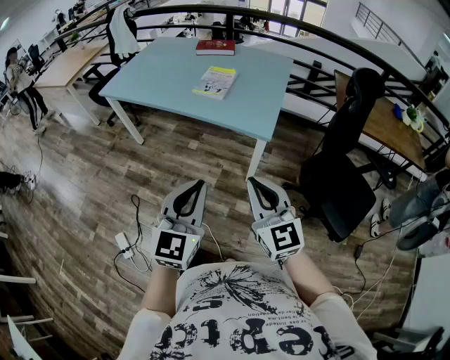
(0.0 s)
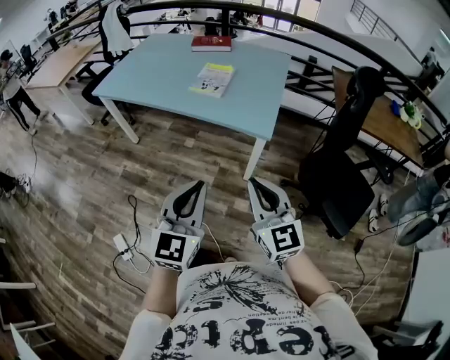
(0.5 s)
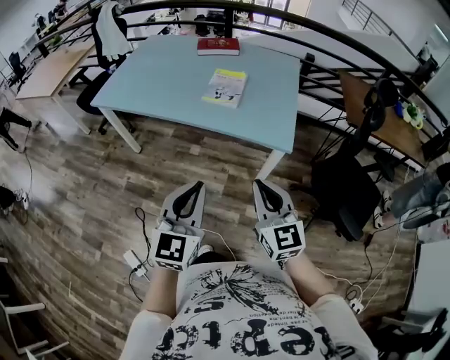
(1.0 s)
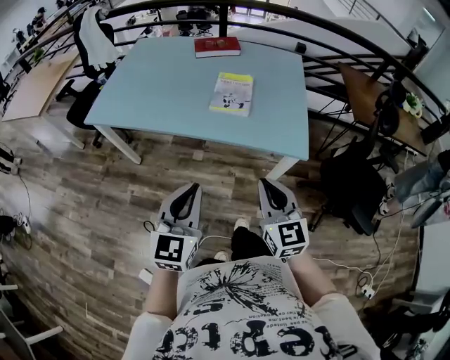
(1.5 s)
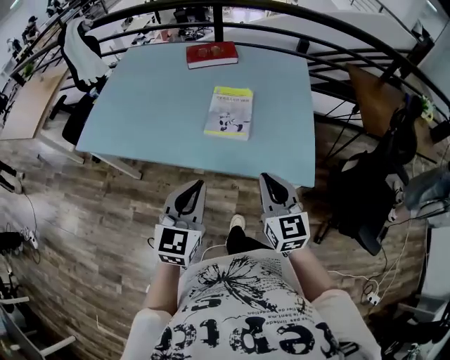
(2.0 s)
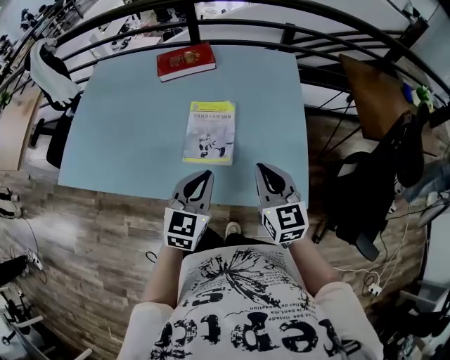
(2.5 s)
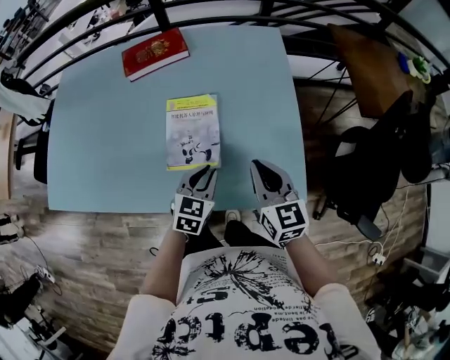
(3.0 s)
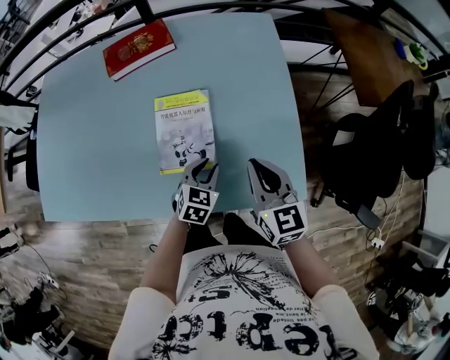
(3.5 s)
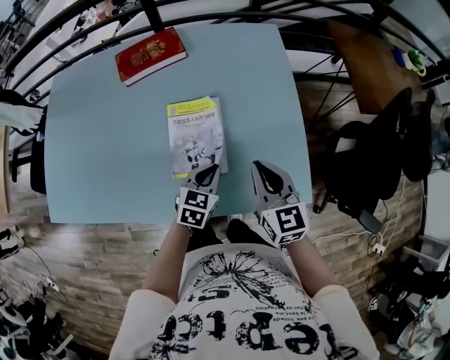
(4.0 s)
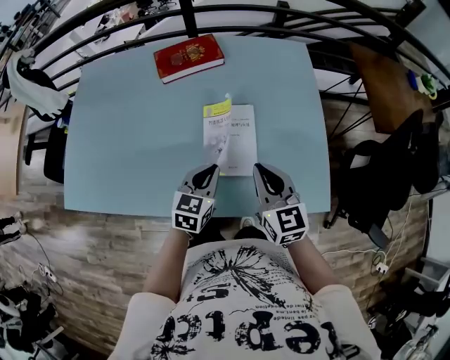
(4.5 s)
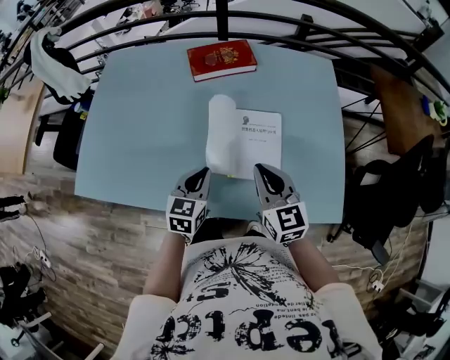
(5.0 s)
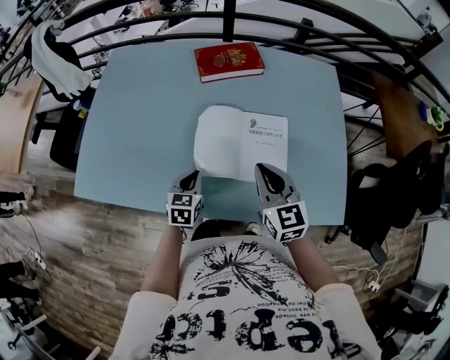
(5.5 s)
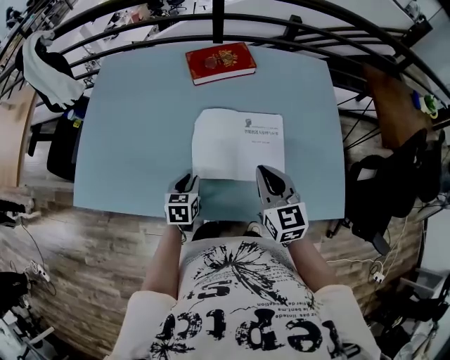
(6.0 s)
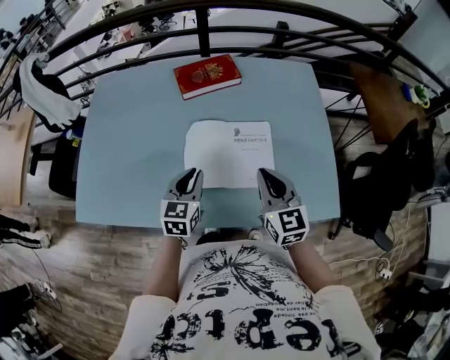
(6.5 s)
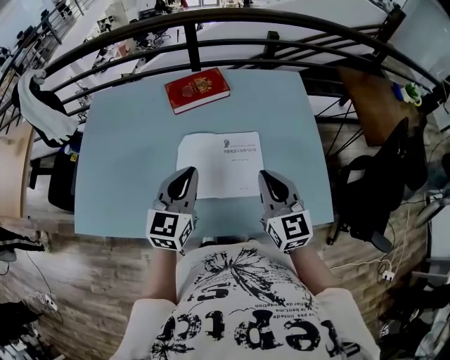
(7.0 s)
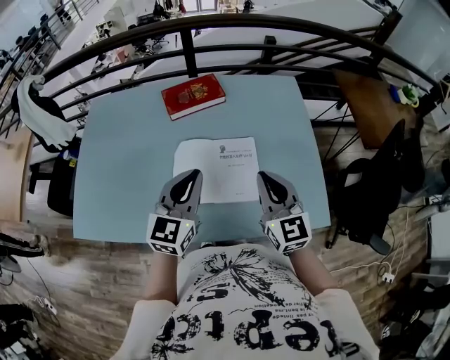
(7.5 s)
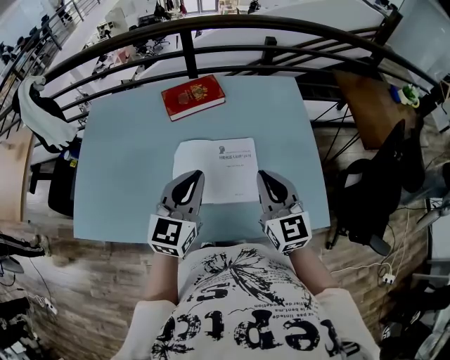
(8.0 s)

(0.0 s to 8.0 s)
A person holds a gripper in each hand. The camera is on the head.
0.0 s - 2.0 s: The two grippers go about 40 cm forward and to the left. The right gripper turns by some 20 degrees.
2.0 s - 4.0 s: The right gripper is displaced forward by approximately 25 cm, while the left gripper shifts some 35 cm forward and downward, changes its angle by some 30 degrees, and opens and closes again.
4.0 s - 6.0 s: Both grippers move to the left, some 25 cm. The left gripper rotates roughly 30 degrees.
6.0 s - 8.0 s: The right gripper moves upward and to the right, some 15 cm; the left gripper shifts some 30 cm upward and to the right, and tilts its fingers about 40 degrees upward.

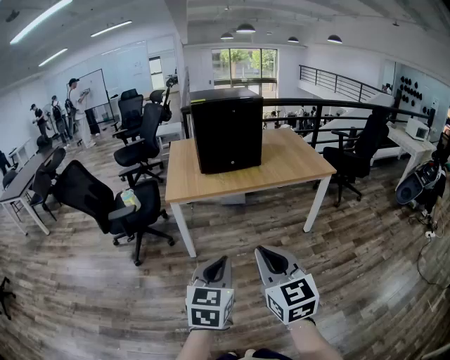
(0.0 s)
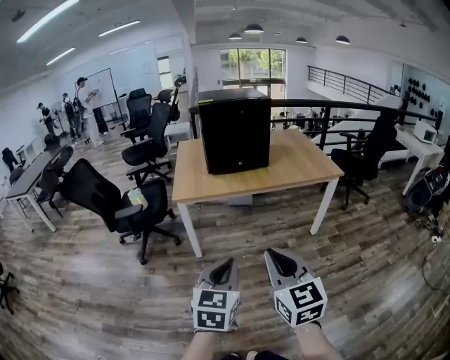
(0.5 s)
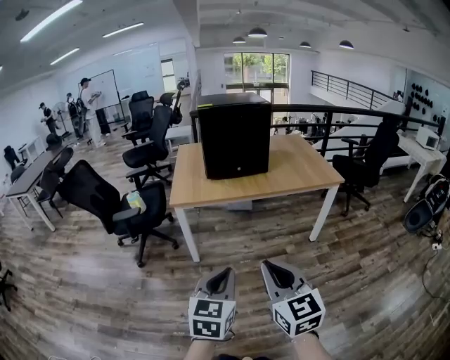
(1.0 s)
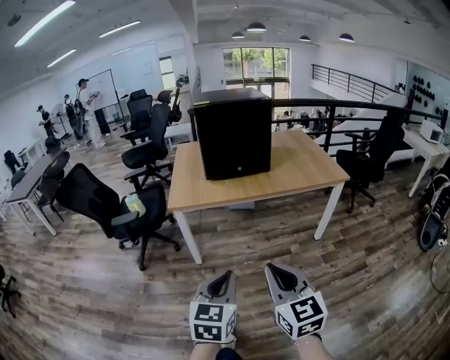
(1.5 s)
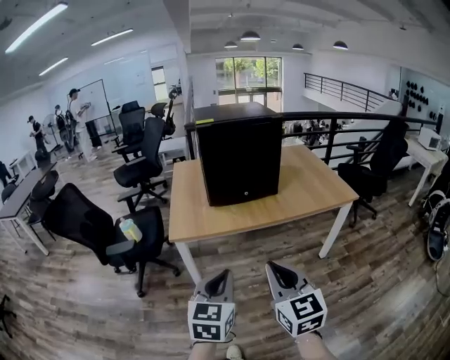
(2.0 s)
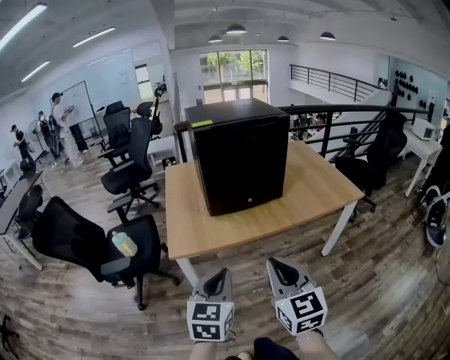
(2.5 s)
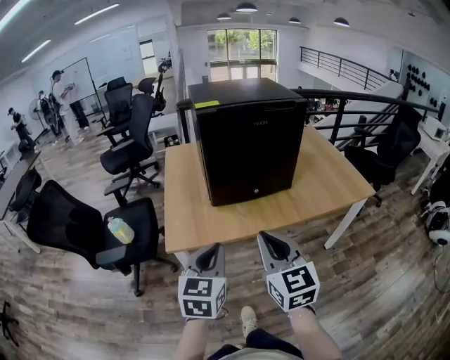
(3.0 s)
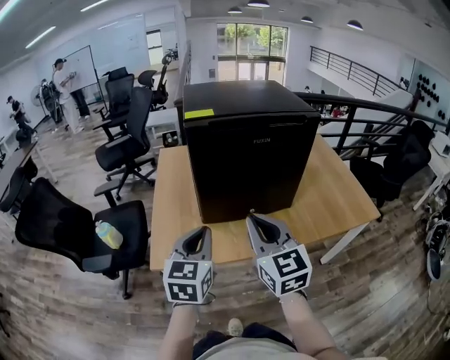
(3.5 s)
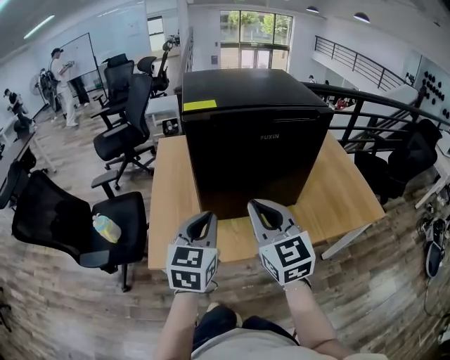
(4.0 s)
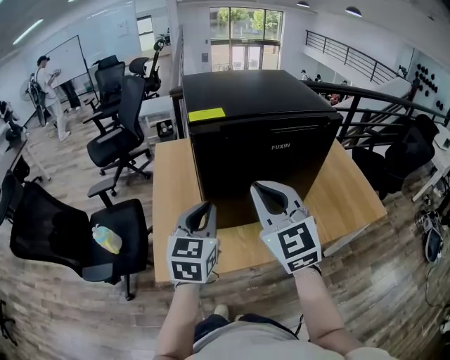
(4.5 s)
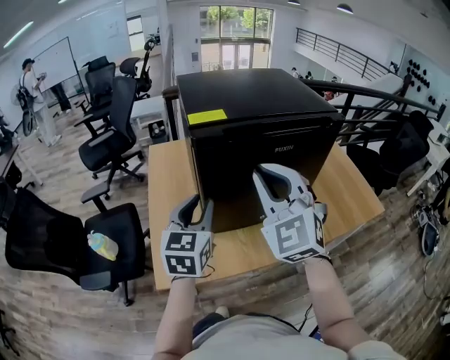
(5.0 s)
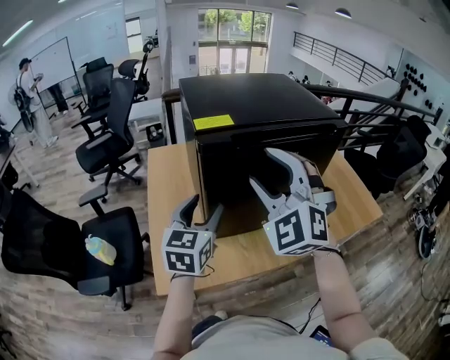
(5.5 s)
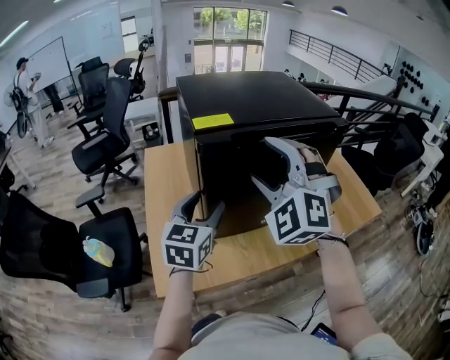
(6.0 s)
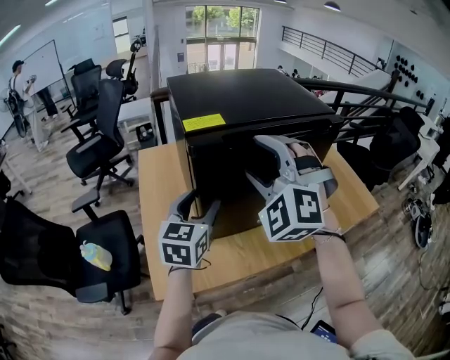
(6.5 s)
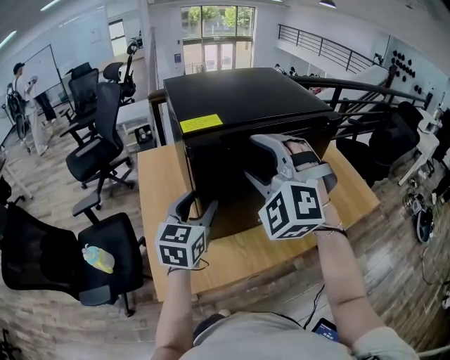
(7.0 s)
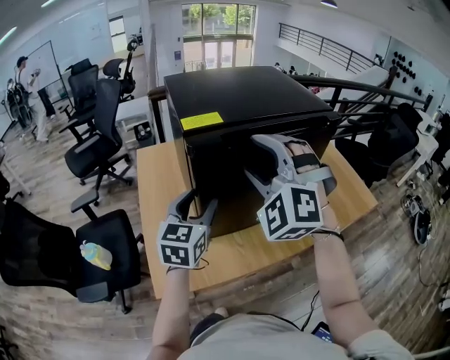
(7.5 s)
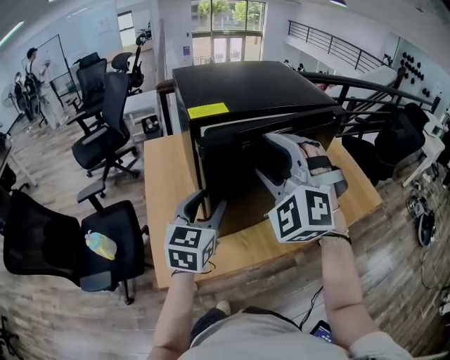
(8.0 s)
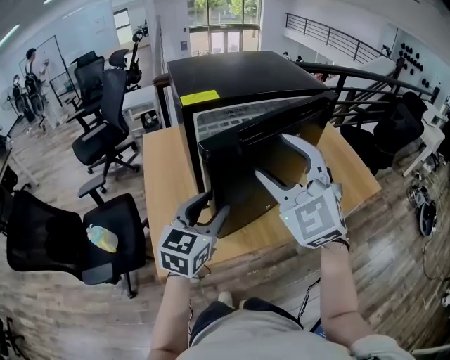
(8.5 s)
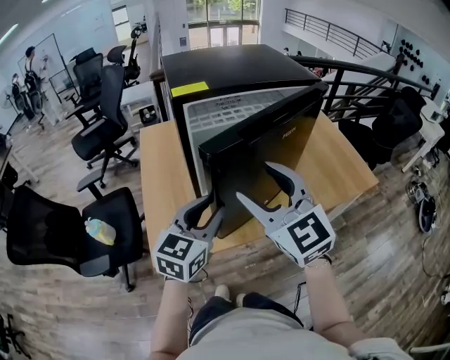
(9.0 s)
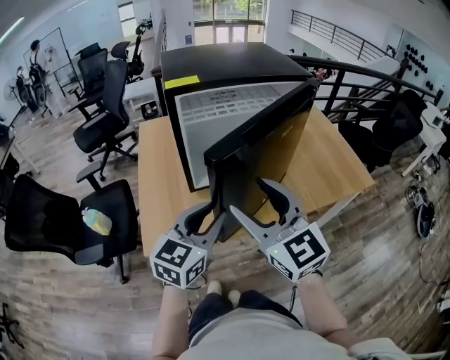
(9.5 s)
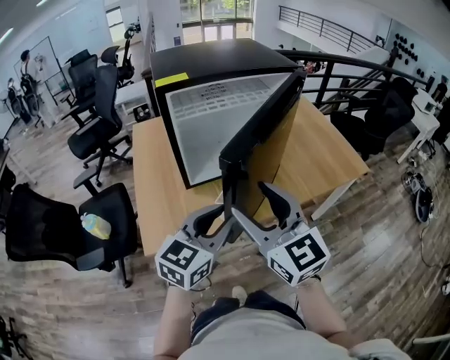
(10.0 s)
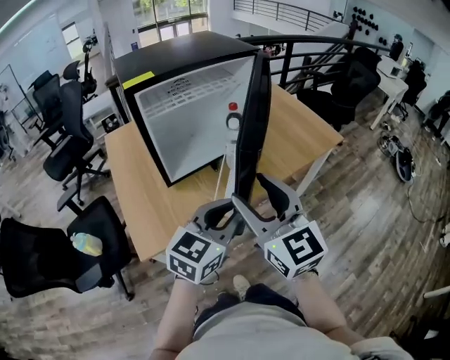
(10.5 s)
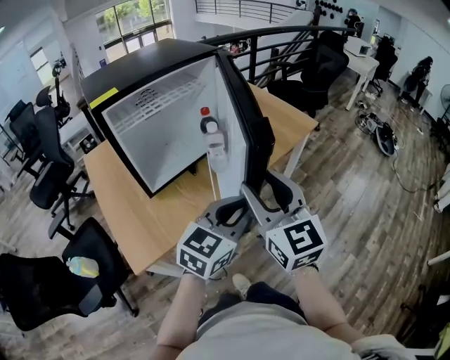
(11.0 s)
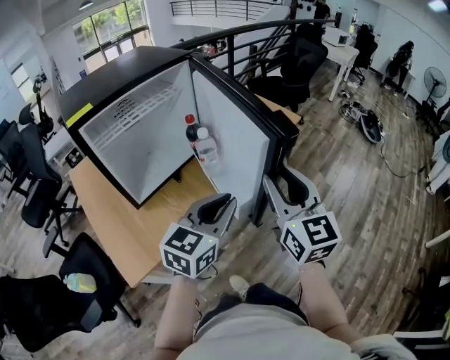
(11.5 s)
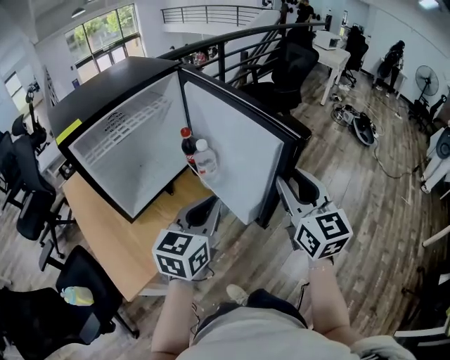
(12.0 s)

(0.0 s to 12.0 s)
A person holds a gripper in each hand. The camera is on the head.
0.0 s - 2.0 s: The two grippers go about 25 cm forward.
2.0 s - 4.0 s: The two grippers travel together, forward, approximately 50 cm.
4.0 s - 6.0 s: The right gripper shifts some 15 cm forward and upward, rolls counterclockwise, seen from behind, by roughly 60 degrees, and opens. Meanwhile the left gripper is displaced forward by approximately 15 cm, and opens up.
6.0 s - 8.0 s: The grippers make only small movements.
8.0 s - 10.0 s: The left gripper heads backward and to the right, covering some 20 cm, swivels roughly 20 degrees, and closes its fingers. The right gripper moves backward, about 20 cm, and rolls clockwise, seen from behind, by about 60 degrees.
10.0 s - 12.0 s: The right gripper shifts by some 25 cm, changes its angle by roughly 50 degrees, and closes up, while the left gripper ends up about 15 cm from where it was.

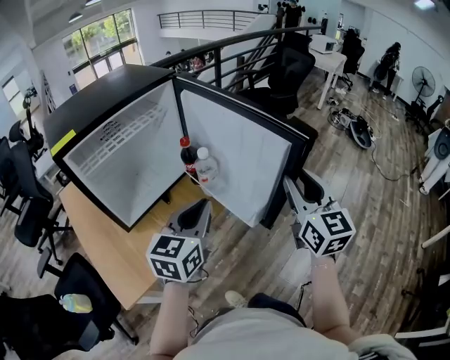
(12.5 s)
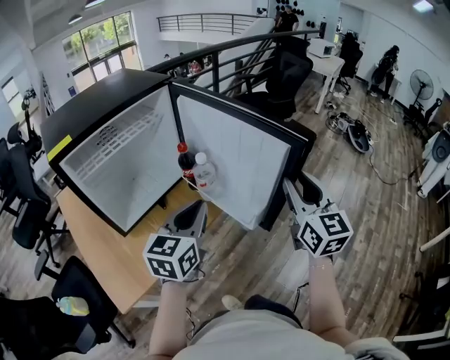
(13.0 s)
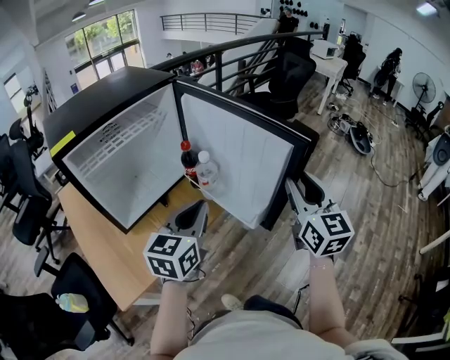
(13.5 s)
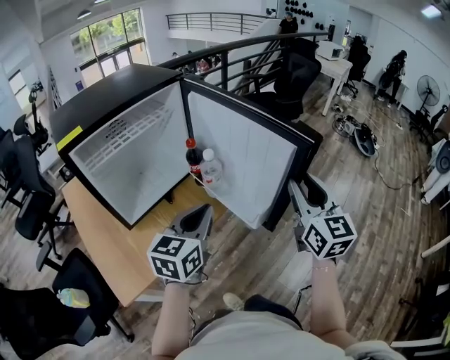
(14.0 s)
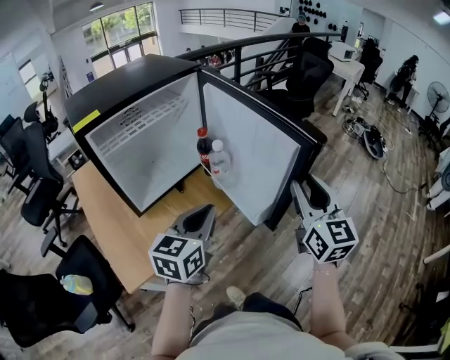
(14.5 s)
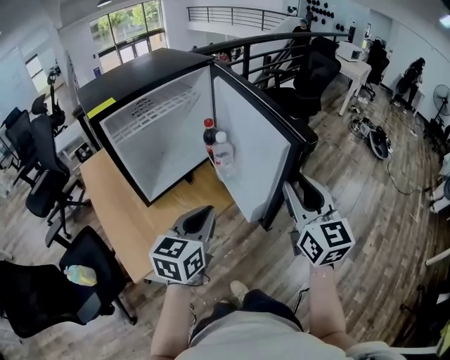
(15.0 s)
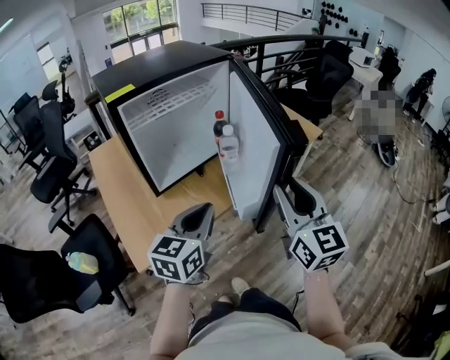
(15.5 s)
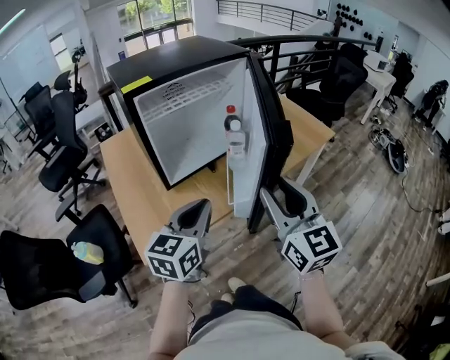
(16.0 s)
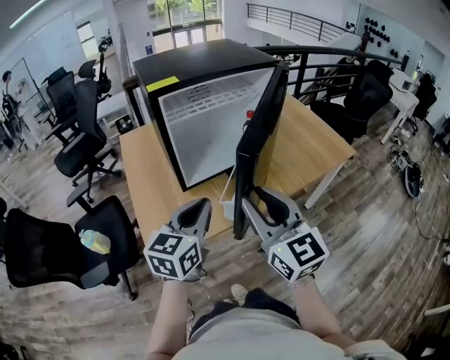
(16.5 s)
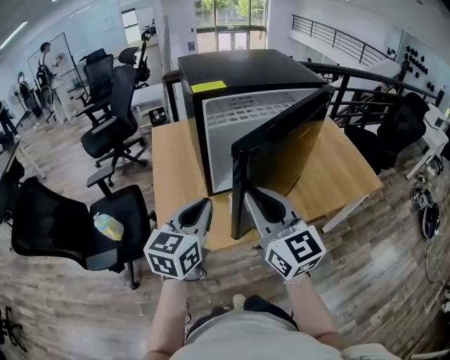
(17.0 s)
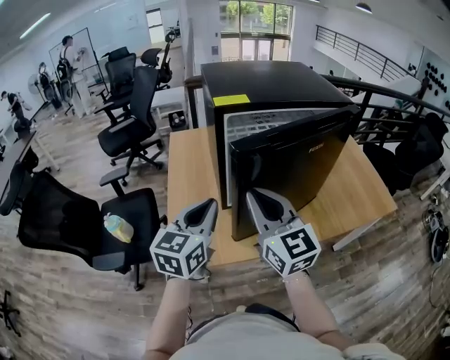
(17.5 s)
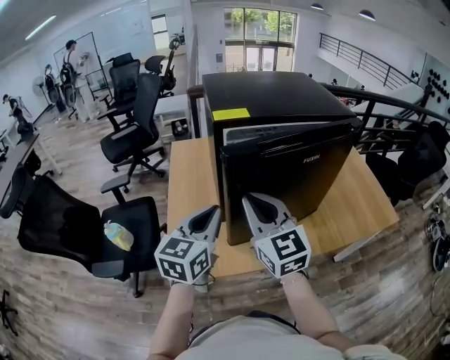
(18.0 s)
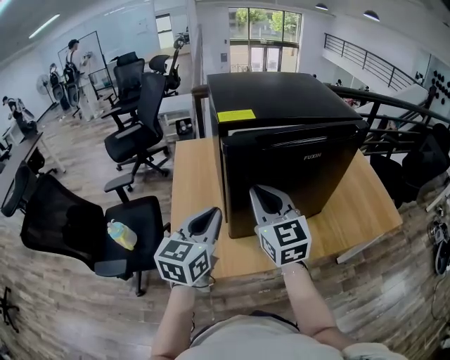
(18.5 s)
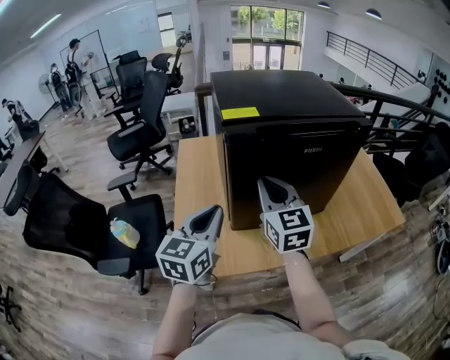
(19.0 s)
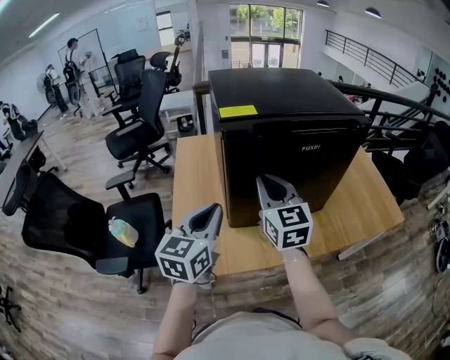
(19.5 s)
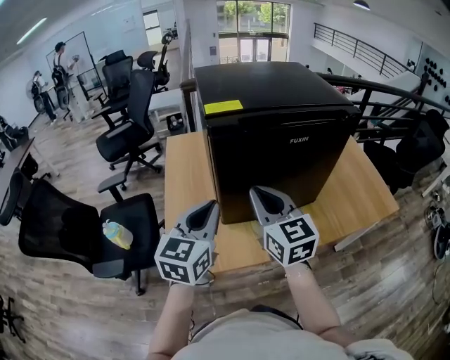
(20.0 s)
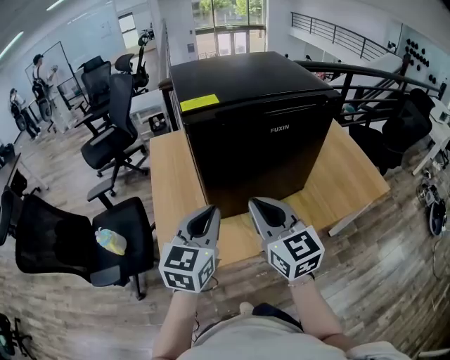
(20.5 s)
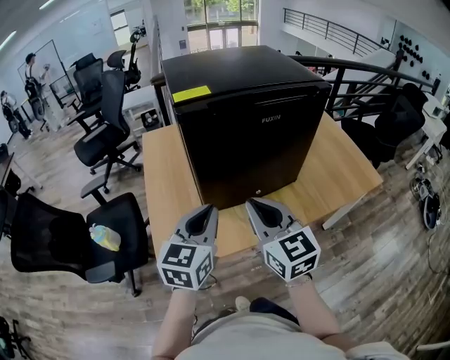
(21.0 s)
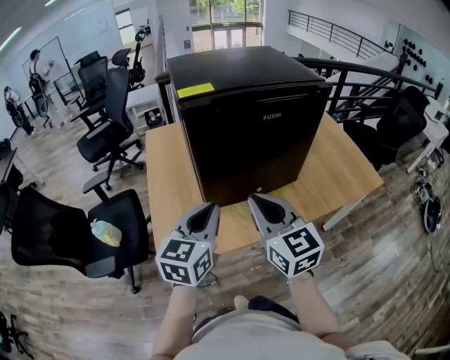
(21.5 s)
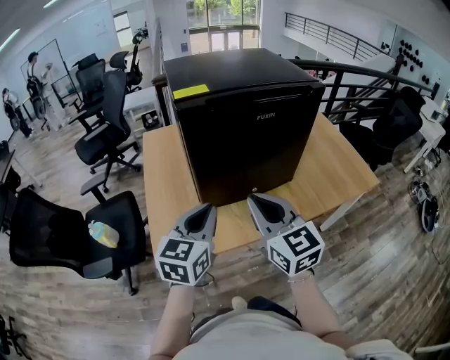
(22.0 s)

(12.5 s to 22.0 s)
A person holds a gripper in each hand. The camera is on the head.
12.5 s - 14.5 s: The left gripper ends up roughly 5 cm from where it was.
14.5 s - 16.5 s: The left gripper moves some 15 cm, and swivels roughly 20 degrees. The right gripper changes place by approximately 25 cm, and rotates some 40 degrees.
16.5 s - 18.0 s: The grippers both shift forward and to the left by approximately 15 cm. The right gripper closes its fingers.
20.0 s - 22.0 s: The left gripper moves backward, about 5 cm. The right gripper goes some 10 cm backward.
